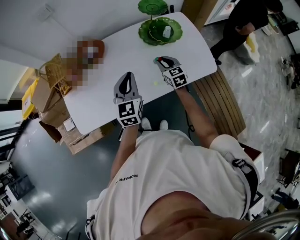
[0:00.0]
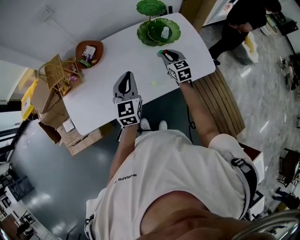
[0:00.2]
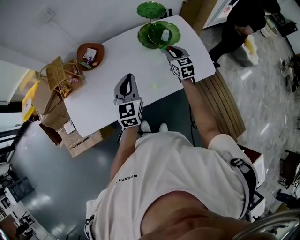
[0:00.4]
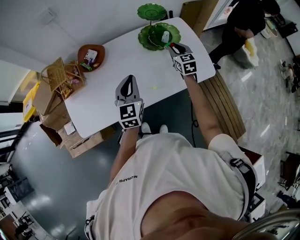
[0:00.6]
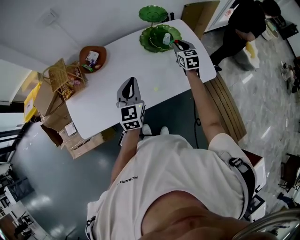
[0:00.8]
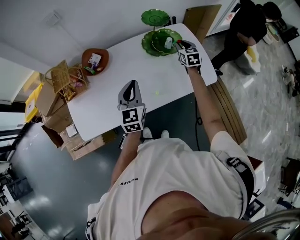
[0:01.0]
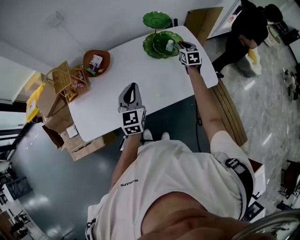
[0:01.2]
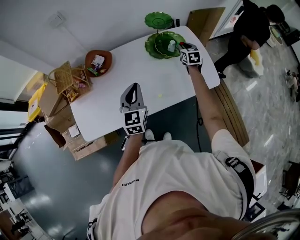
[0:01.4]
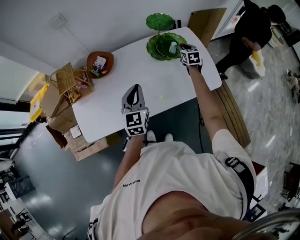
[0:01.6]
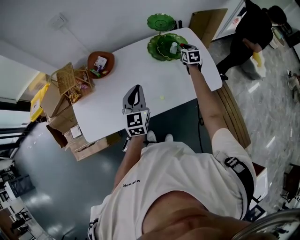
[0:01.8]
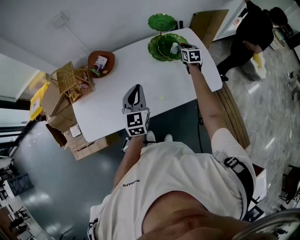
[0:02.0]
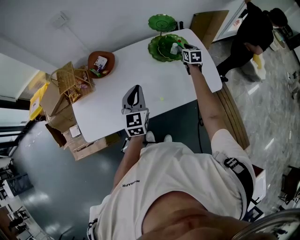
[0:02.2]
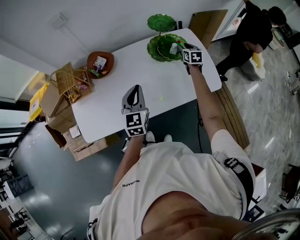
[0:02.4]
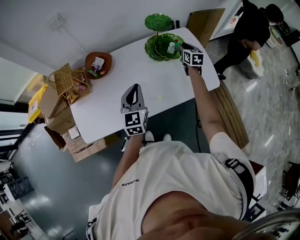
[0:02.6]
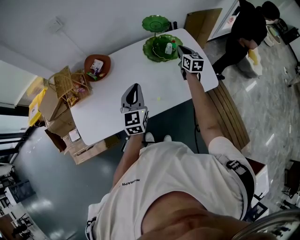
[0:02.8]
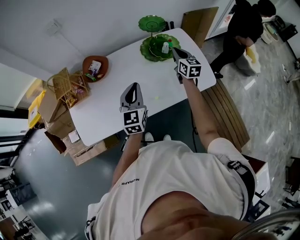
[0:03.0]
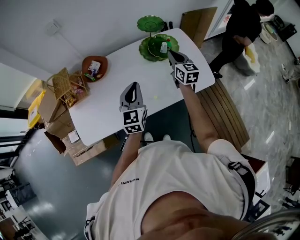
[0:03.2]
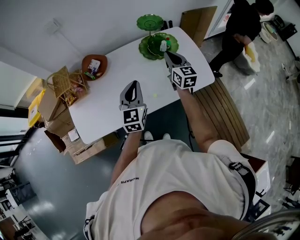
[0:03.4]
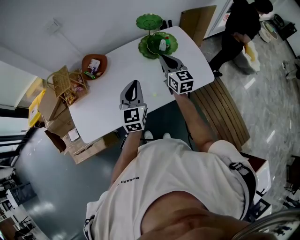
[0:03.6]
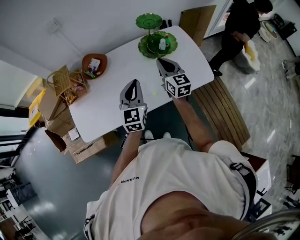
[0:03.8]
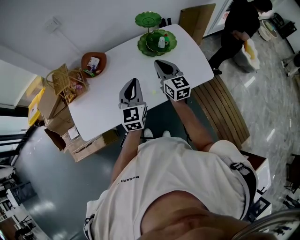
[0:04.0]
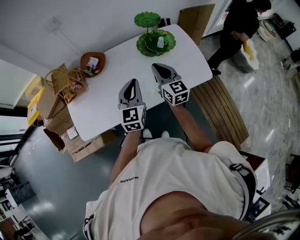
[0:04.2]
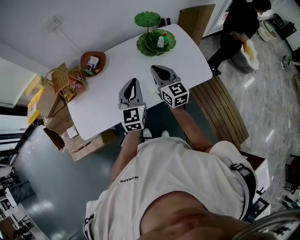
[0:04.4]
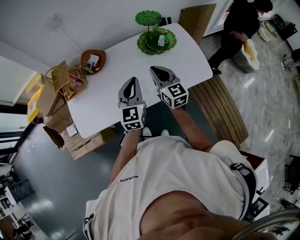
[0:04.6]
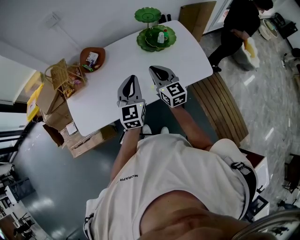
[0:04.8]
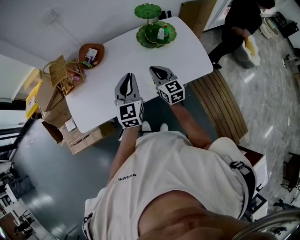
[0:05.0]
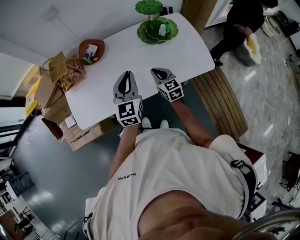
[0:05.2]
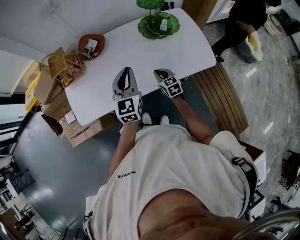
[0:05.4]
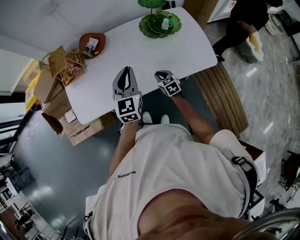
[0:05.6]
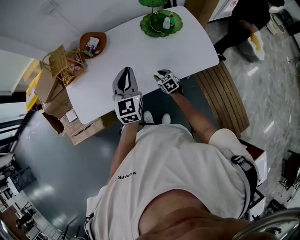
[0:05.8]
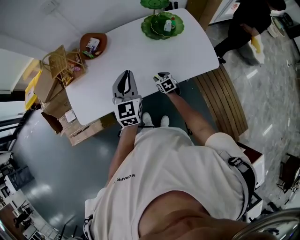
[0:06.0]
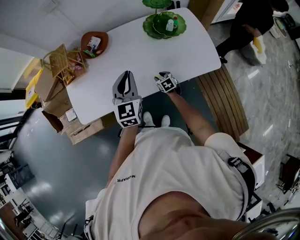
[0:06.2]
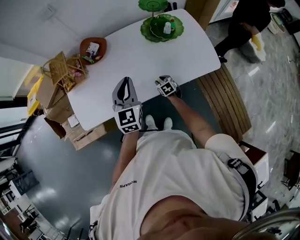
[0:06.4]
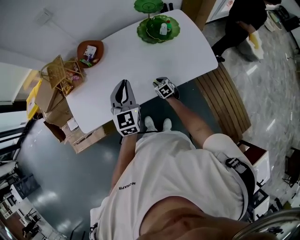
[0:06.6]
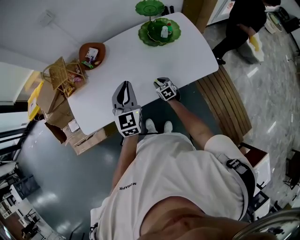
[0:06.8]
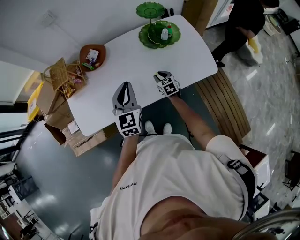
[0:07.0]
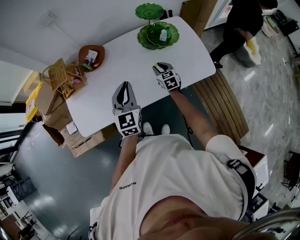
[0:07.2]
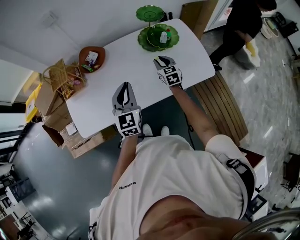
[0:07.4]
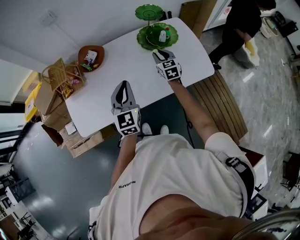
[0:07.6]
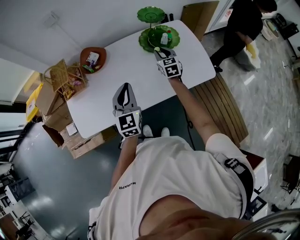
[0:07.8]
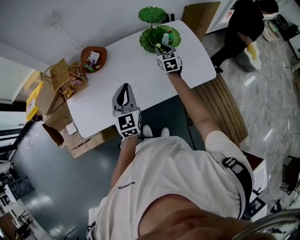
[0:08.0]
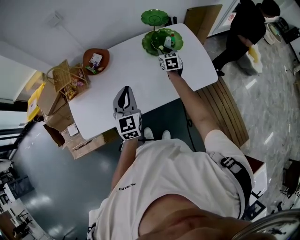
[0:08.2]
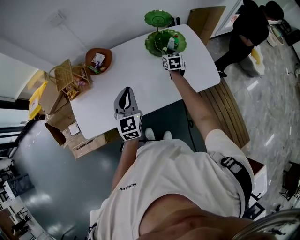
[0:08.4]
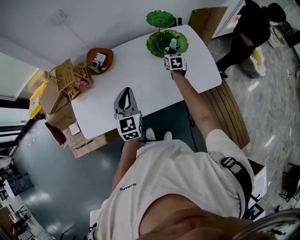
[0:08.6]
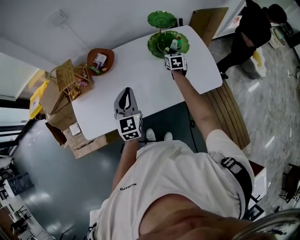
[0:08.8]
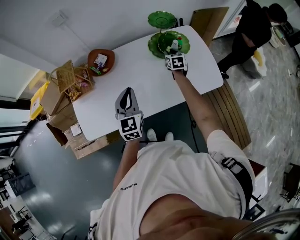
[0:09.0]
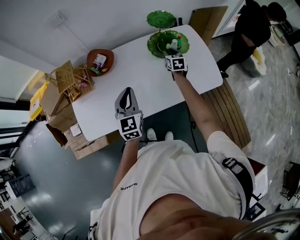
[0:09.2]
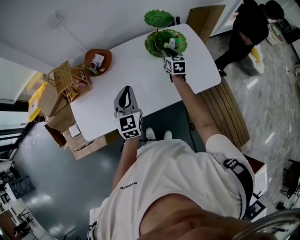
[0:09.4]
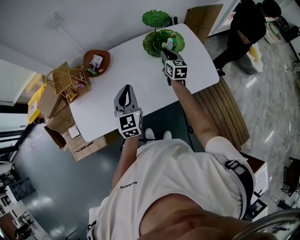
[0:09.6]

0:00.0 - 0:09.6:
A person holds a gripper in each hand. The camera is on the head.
0:00.0 - 0:01.6: The right gripper heads forward and to the right, covering about 20 cm.
0:01.6 - 0:03.2: The right gripper is displaced upward, backward and to the left by about 15 cm, and turns by some 20 degrees.
0:03.2 - 0:04.8: The right gripper shifts about 20 cm backward and to the left.
0:04.8 - 0:06.4: The right gripper is displaced downward by some 35 cm, tilts its fingers roughly 40 degrees downward, and opens, while the left gripper moves approximately 5 cm.
0:06.4 - 0:08.0: The right gripper heads upward and forward, covering approximately 30 cm, and rotates about 30 degrees.
0:08.0 - 0:09.6: The right gripper travels downward and back again, some 5 cm each way.

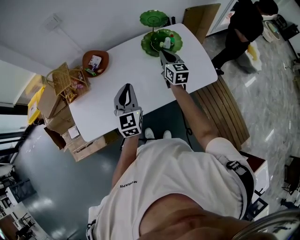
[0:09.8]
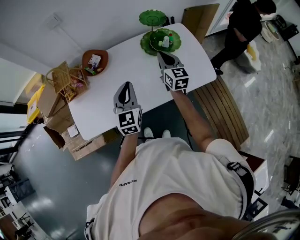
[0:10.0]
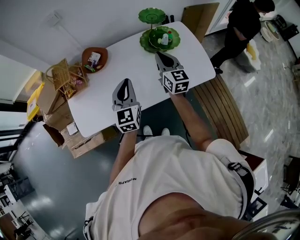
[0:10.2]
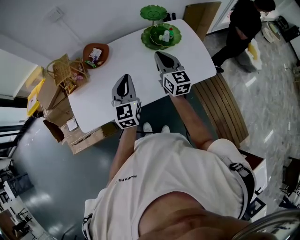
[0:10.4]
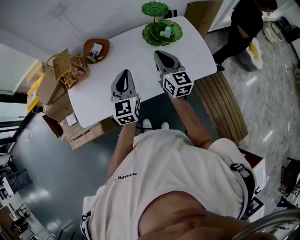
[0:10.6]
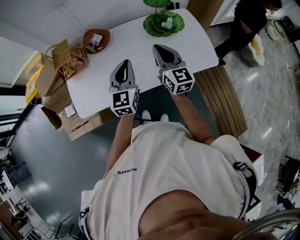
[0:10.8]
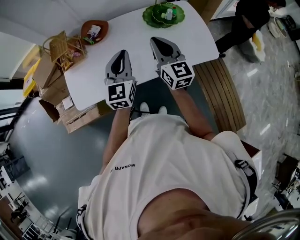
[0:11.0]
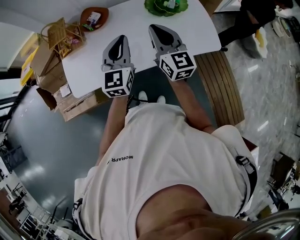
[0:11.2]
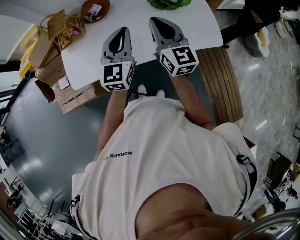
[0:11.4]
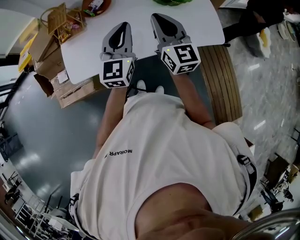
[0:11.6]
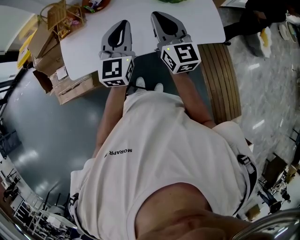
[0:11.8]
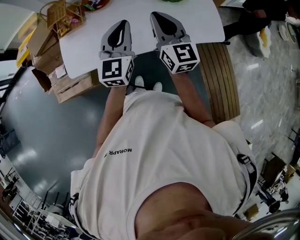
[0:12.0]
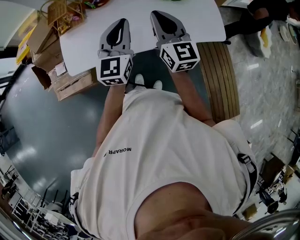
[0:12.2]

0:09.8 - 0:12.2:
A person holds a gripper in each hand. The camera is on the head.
0:09.8 - 0:11.0: The left gripper shifts by approximately 5 cm. Meanwhile the right gripper is displaced backward, upward and to the left by roughly 20 cm.
0:11.0 - 0:12.2: The right gripper changes place by roughly 5 cm.

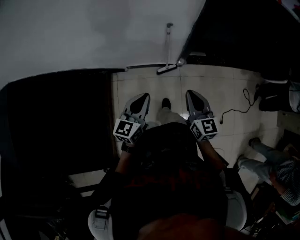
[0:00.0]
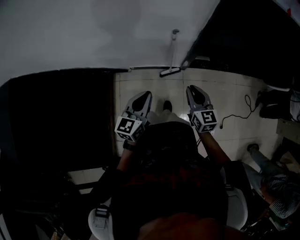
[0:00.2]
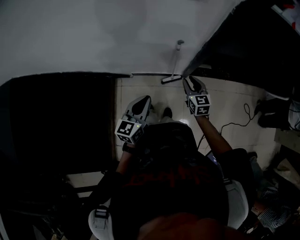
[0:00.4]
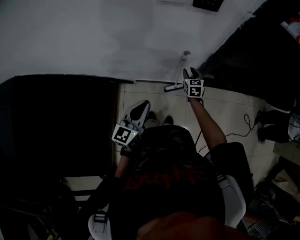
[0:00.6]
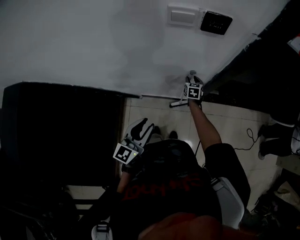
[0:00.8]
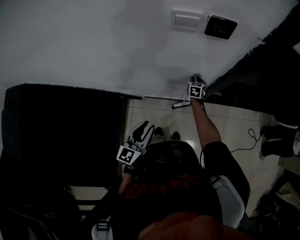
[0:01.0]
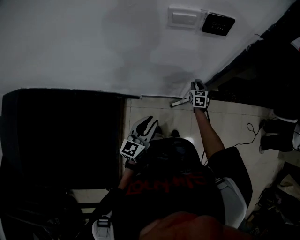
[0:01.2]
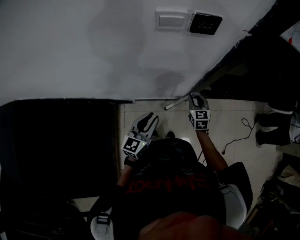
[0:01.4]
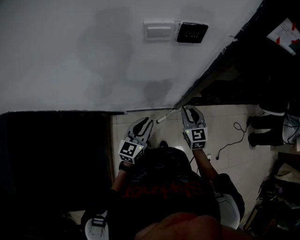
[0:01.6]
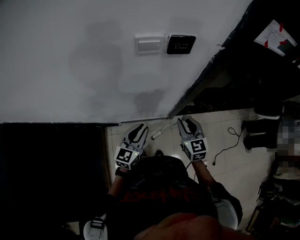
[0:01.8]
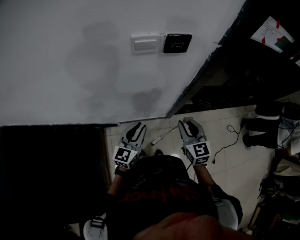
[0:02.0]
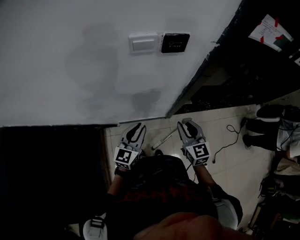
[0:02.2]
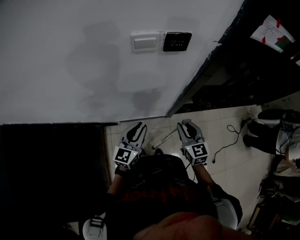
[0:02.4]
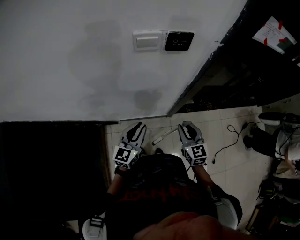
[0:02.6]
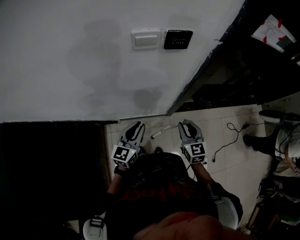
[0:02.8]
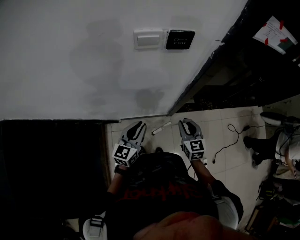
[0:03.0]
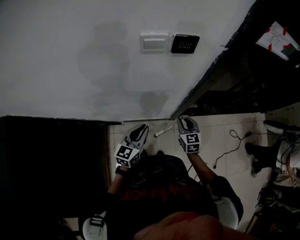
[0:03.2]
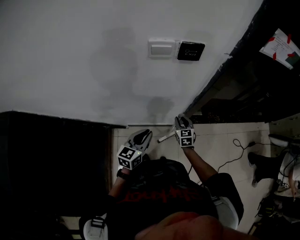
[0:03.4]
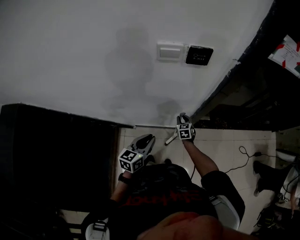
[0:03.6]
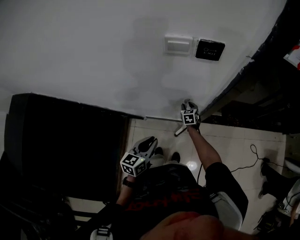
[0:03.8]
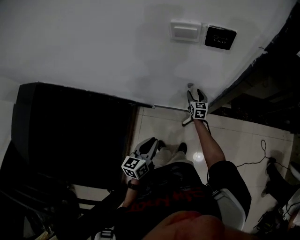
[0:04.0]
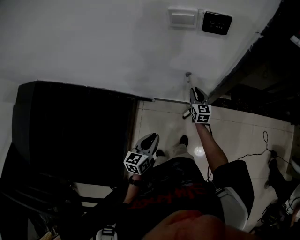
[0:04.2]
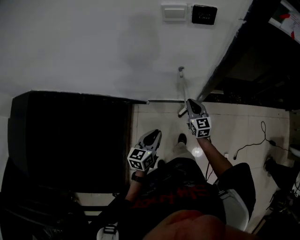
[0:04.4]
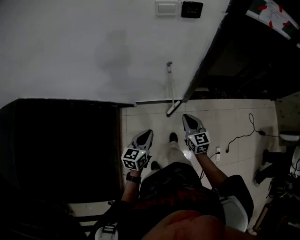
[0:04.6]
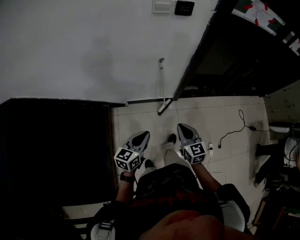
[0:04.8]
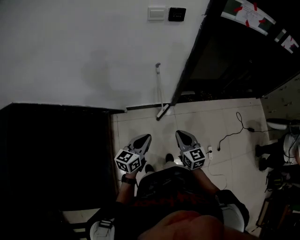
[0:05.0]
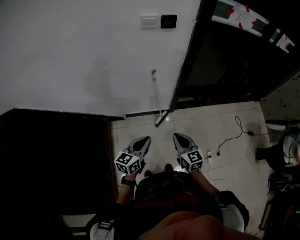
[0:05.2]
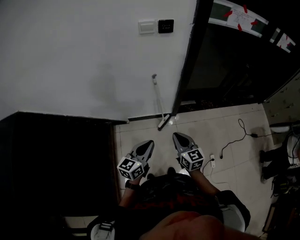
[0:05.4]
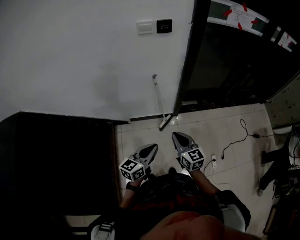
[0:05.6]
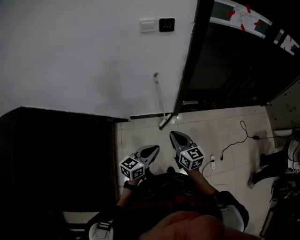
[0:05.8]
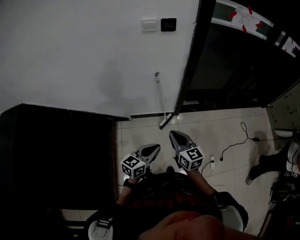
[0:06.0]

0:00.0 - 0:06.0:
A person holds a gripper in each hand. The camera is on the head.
0:00.0 - 0:01.6: The grippers both shift forward by about 20 cm. The right gripper opens.
0:01.6 - 0:03.0: The right gripper shifts by about 5 cm.
0:03.0 - 0:04.4: The right gripper heads to the left, covering approximately 10 cm, goes downward and returns, approximately 20 cm each way, and closes up. Meanwhile the left gripper shifts approximately 15 cm backward, and swivels roughly 20 degrees.
0:04.4 - 0:06.0: The right gripper is displaced backward and upward by approximately 30 cm, while the left gripper travels backward and to the right by approximately 20 cm, and turns by roughly 30 degrees.

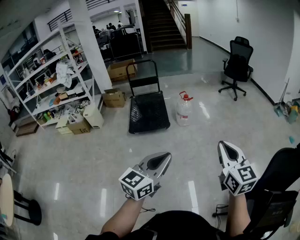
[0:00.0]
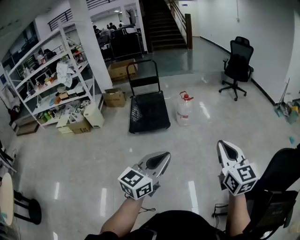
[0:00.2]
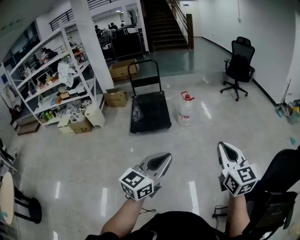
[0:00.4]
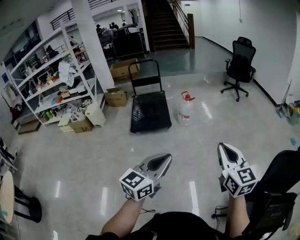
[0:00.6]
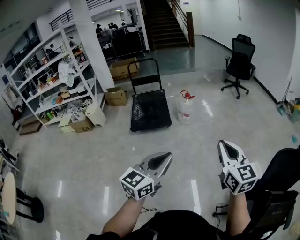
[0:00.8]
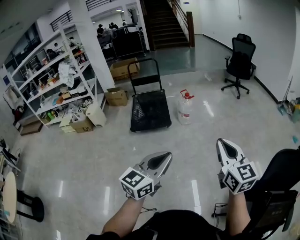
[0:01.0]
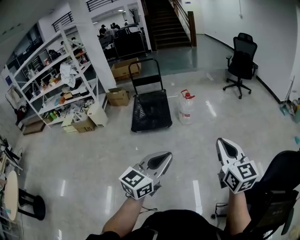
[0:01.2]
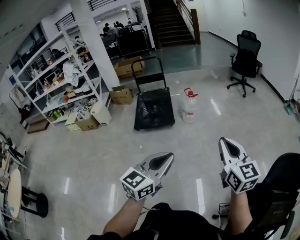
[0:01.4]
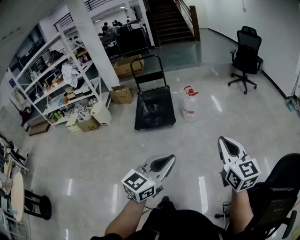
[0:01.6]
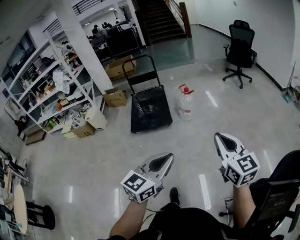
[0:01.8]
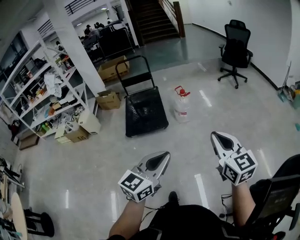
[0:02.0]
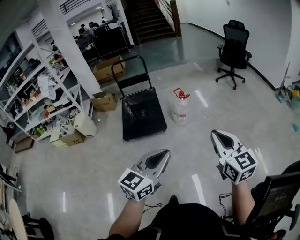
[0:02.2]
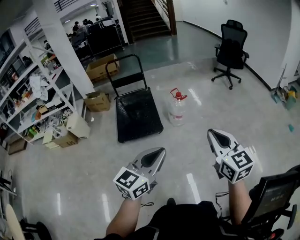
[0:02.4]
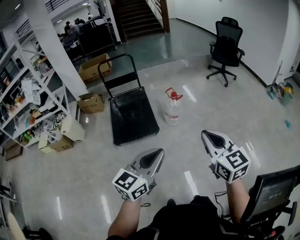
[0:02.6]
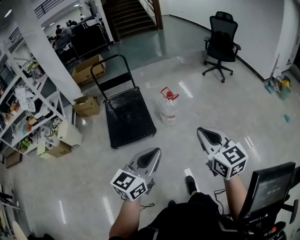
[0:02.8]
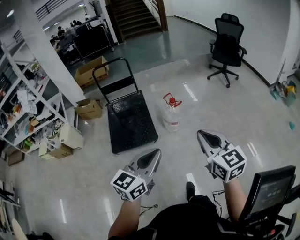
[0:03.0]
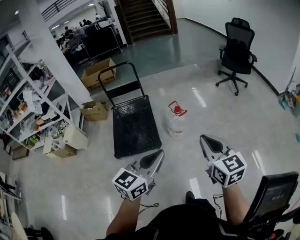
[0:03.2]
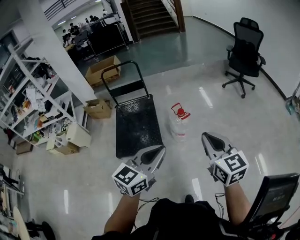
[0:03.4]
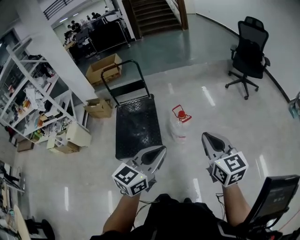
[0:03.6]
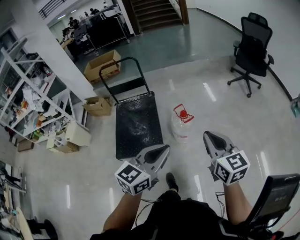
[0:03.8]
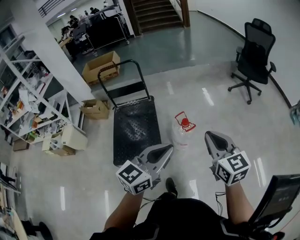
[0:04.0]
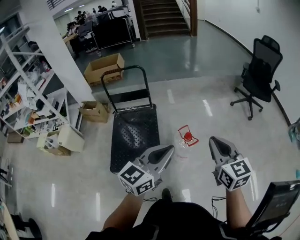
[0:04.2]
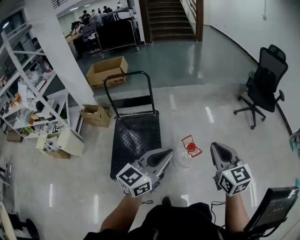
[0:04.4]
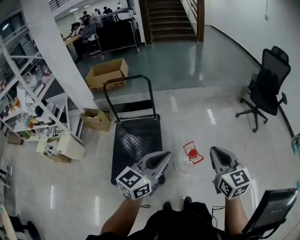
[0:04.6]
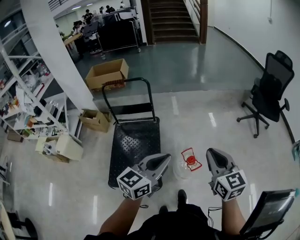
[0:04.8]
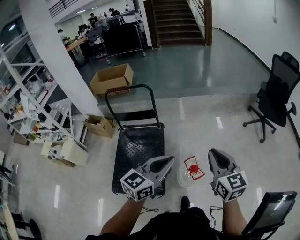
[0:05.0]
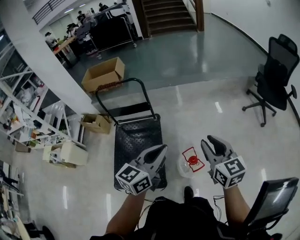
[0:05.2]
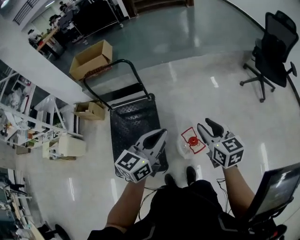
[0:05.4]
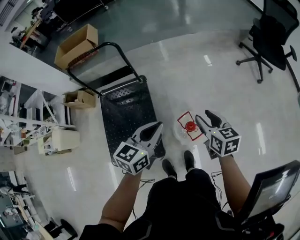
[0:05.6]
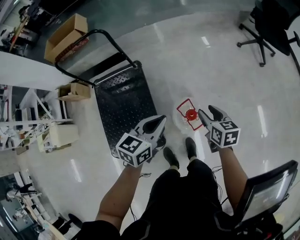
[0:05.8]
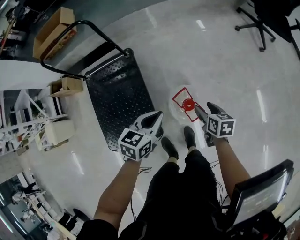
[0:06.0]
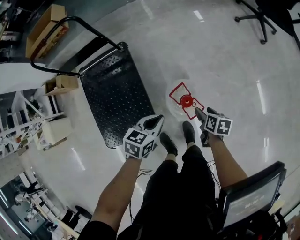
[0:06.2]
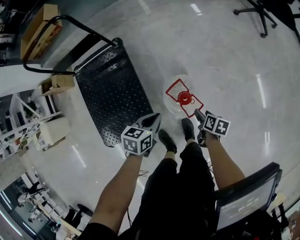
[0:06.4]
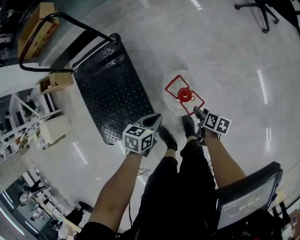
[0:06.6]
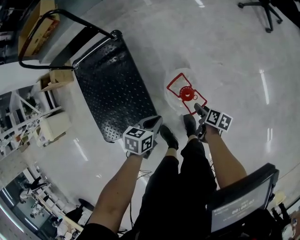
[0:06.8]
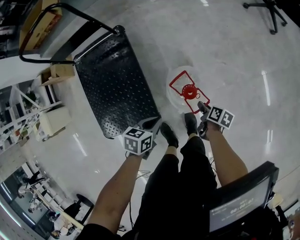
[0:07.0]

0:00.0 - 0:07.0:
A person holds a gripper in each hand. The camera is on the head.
0:00.0 - 0:01.4: The two grippers go roughly 10 cm to the right.
0:01.4 - 0:02.8: The grippers both shift forward and to the left by roughly 35 cm.
0:02.8 - 0:04.2: The two grippers travel together, forward, about 50 cm.
0:04.2 - 0:05.6: Both grippers travel together forward and downward, about 40 cm. The left gripper turns by approximately 20 degrees, while the right gripper turns by roughly 30 degrees, and opens.
0:05.6 - 0:07.0: The grippers both shift downward by roughly 35 cm. The left gripper tips its fingers downward by about 30 degrees. Meanwhile the right gripper rotates around the line of its fingers by approximately 50 degrees, clockwise from behind.
